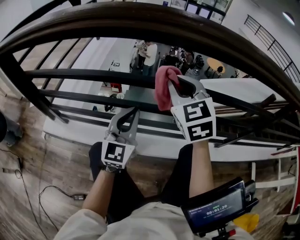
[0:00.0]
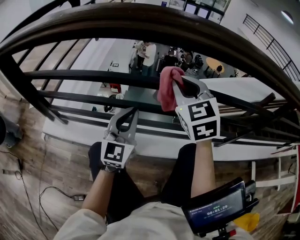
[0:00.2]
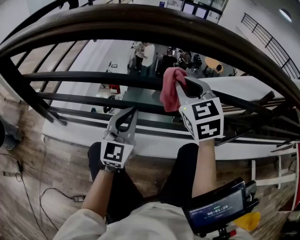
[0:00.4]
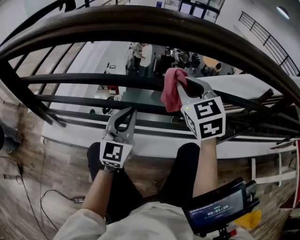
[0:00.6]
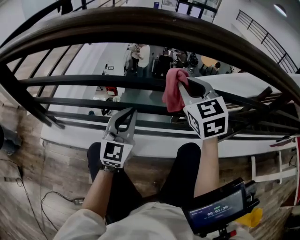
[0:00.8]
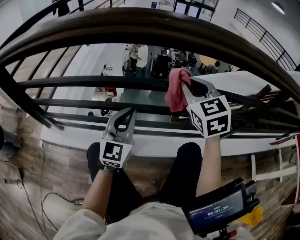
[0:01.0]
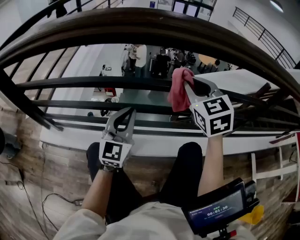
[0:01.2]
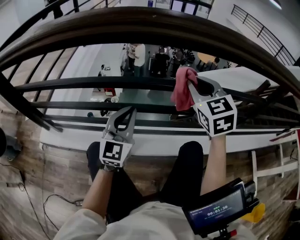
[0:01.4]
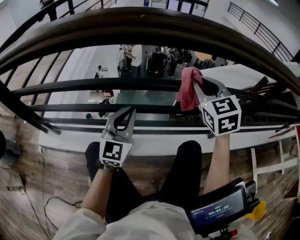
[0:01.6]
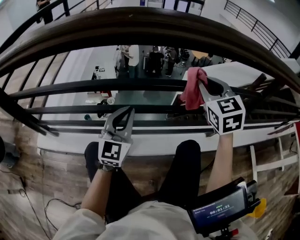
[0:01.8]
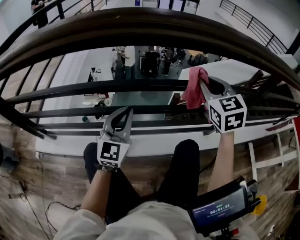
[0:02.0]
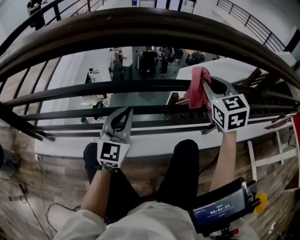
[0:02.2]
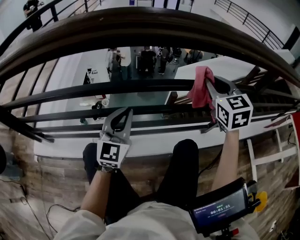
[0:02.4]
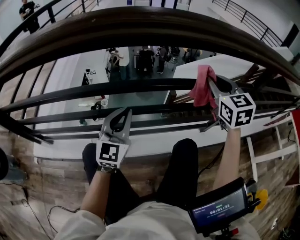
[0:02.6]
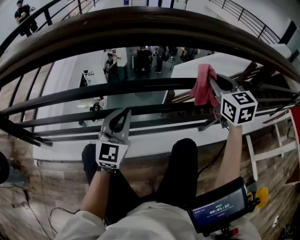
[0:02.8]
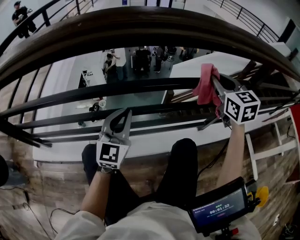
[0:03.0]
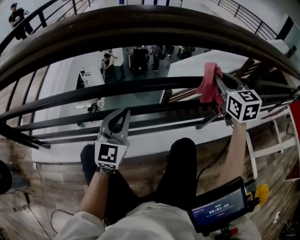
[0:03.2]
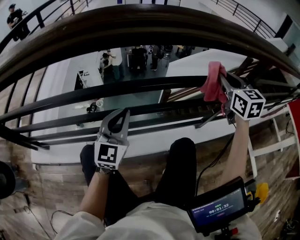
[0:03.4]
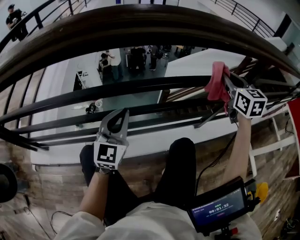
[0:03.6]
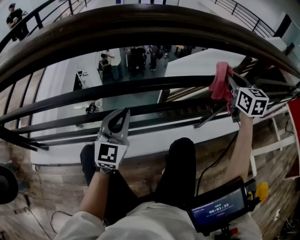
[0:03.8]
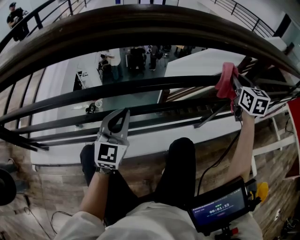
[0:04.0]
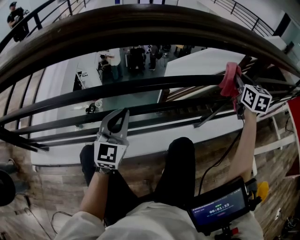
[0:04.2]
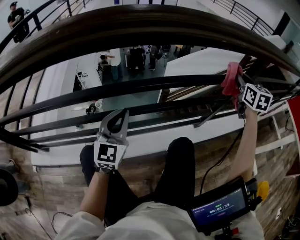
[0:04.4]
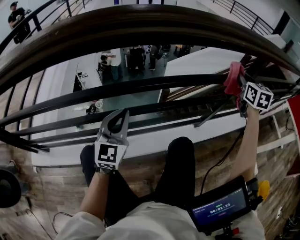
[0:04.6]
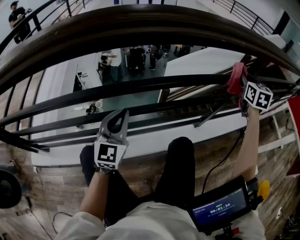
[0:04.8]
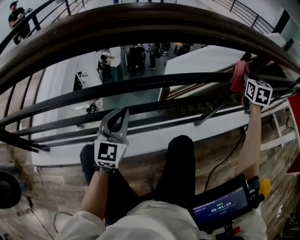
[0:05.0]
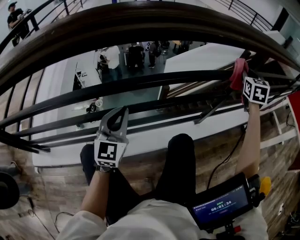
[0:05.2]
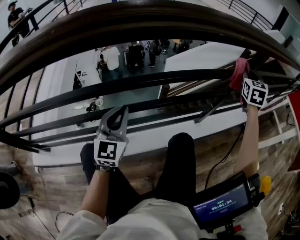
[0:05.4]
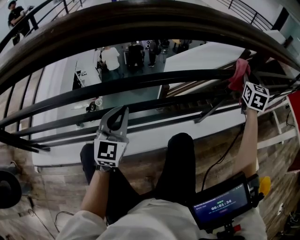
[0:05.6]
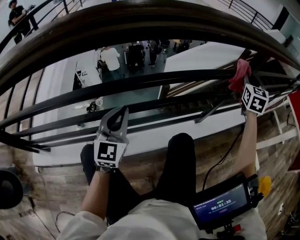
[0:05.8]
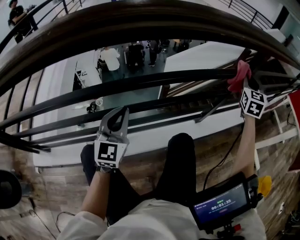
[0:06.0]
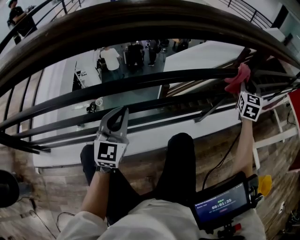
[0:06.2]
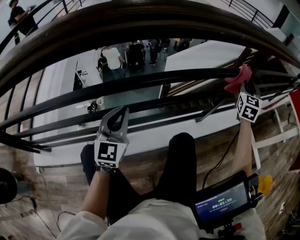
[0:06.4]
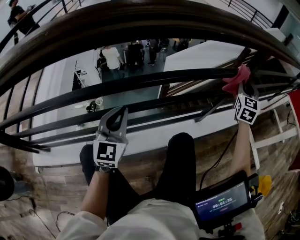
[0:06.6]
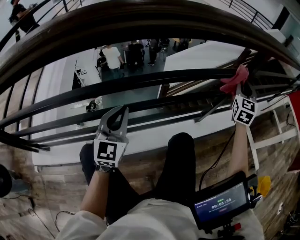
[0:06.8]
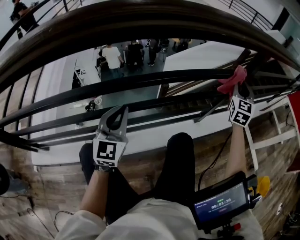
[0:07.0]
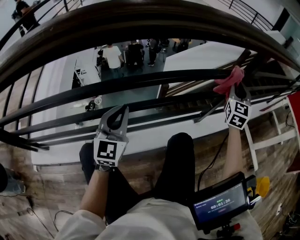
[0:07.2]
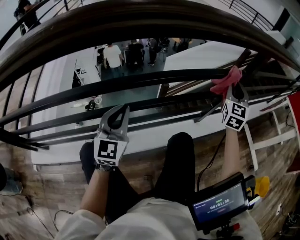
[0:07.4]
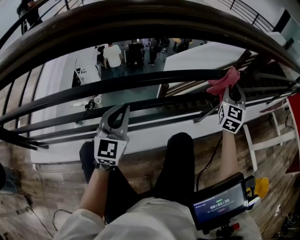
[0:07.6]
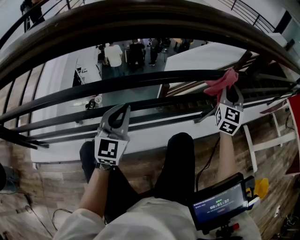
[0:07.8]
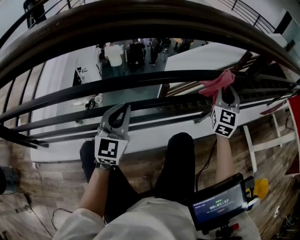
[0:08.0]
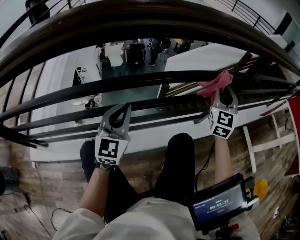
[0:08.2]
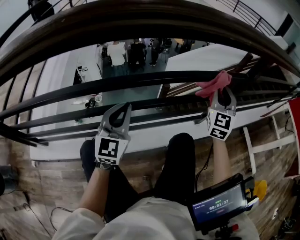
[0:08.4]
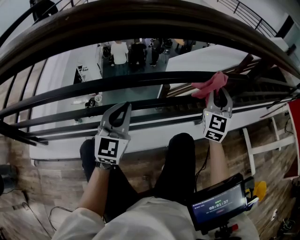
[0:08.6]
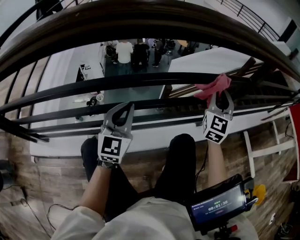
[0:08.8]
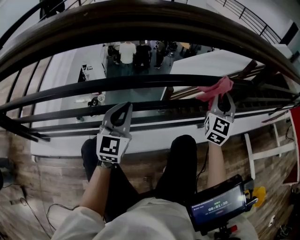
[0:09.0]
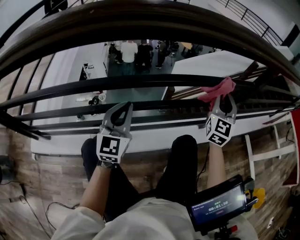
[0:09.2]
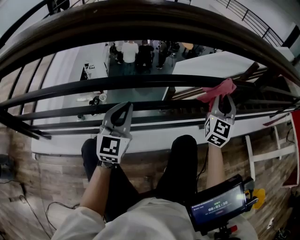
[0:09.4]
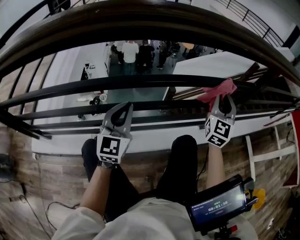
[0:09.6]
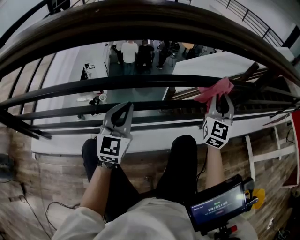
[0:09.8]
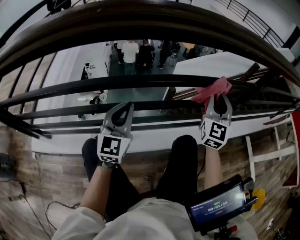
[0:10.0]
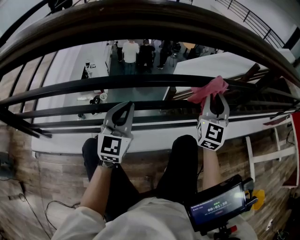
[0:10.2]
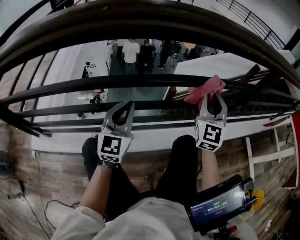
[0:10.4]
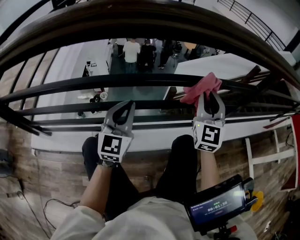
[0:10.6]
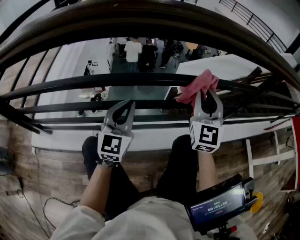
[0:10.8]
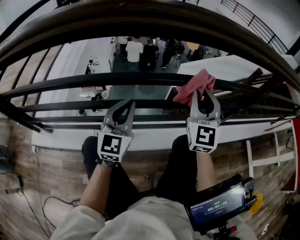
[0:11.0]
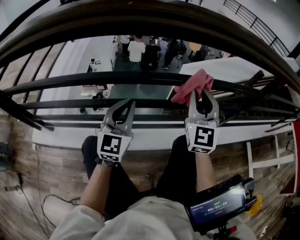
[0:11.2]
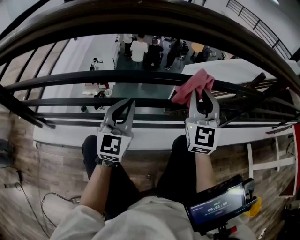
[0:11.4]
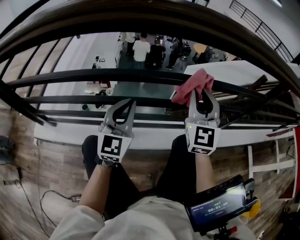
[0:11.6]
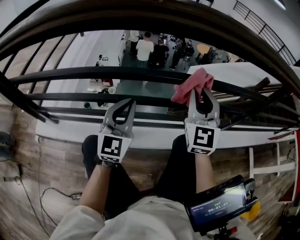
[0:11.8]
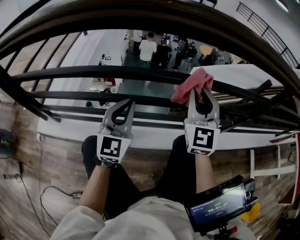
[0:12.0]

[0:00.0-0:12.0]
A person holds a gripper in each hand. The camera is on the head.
0:00.0 to 0:01.6: The left gripper heads to the right, covering approximately 10 cm. The right gripper moves to the right, some 20 cm.
0:01.6 to 0:03.0: The right gripper travels to the right by about 15 cm, while the left gripper changes place by roughly 5 cm.
0:03.0 to 0:04.4: The right gripper travels to the right by some 15 cm, and changes its angle by roughly 20 degrees.
0:04.4 to 0:06.0: The right gripper moves to the right, roughly 5 cm, and rotates about 20 degrees.
0:06.0 to 0:07.6: The right gripper heads to the left and backward, covering roughly 10 cm.
0:07.6 to 0:09.0: The right gripper shifts about 5 cm to the left.
0:09.0 to 0:10.4: The right gripper shifts about 10 cm to the left.
0:10.4 to 0:12.0: The left gripper is displaced to the left by approximately 10 cm. The right gripper travels to the left by roughly 15 cm.

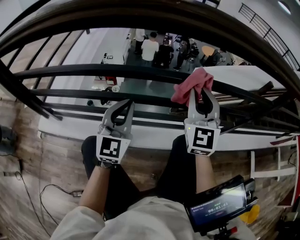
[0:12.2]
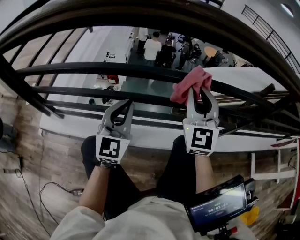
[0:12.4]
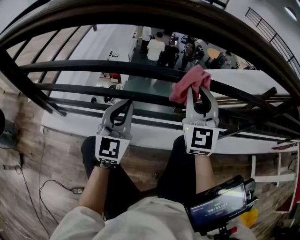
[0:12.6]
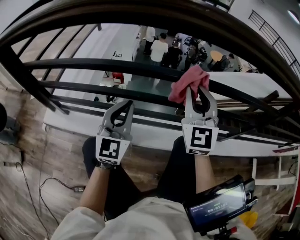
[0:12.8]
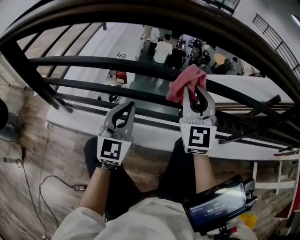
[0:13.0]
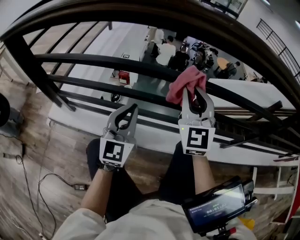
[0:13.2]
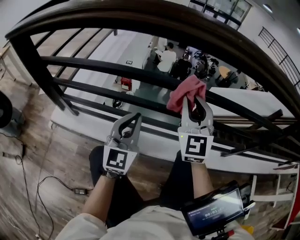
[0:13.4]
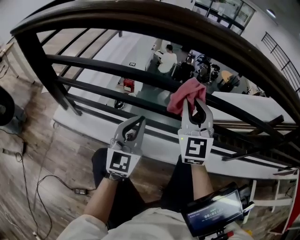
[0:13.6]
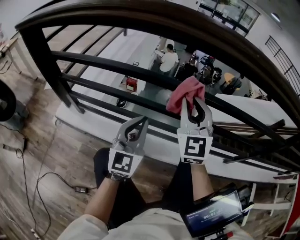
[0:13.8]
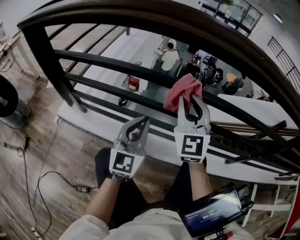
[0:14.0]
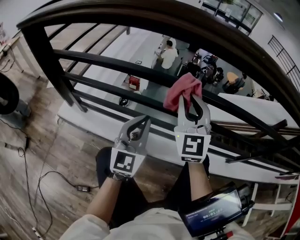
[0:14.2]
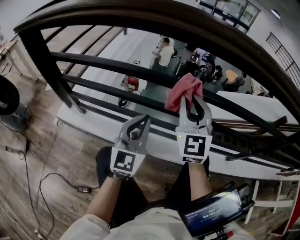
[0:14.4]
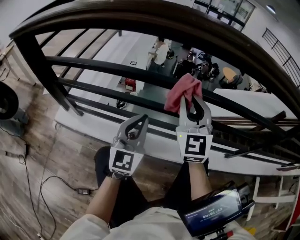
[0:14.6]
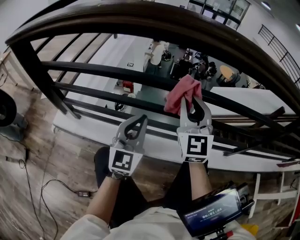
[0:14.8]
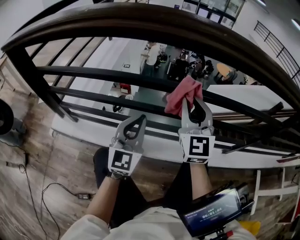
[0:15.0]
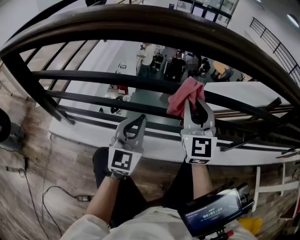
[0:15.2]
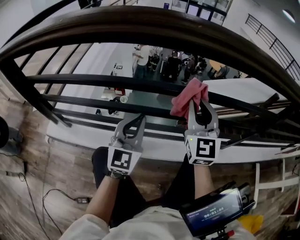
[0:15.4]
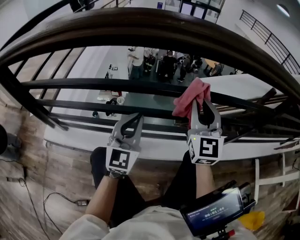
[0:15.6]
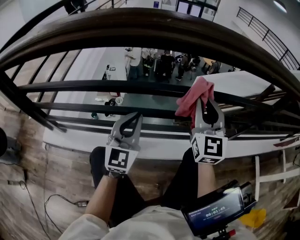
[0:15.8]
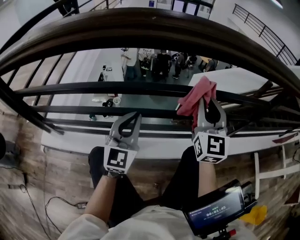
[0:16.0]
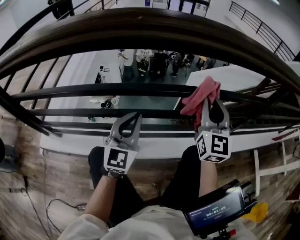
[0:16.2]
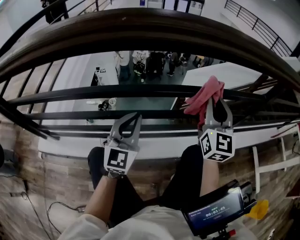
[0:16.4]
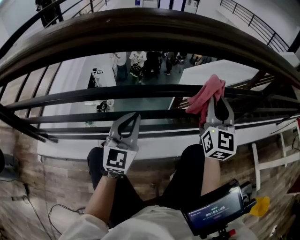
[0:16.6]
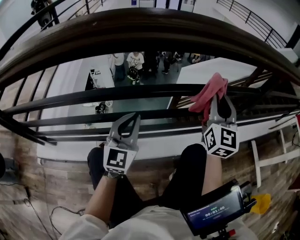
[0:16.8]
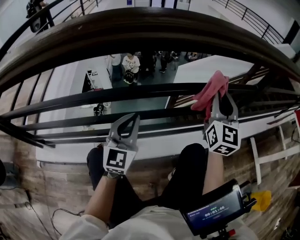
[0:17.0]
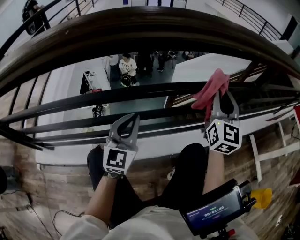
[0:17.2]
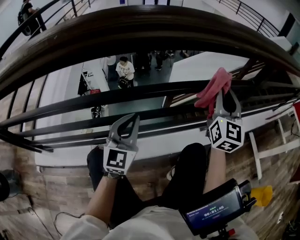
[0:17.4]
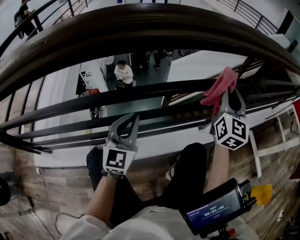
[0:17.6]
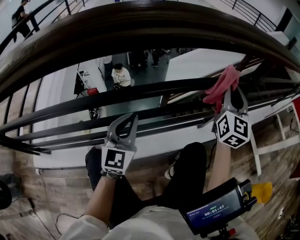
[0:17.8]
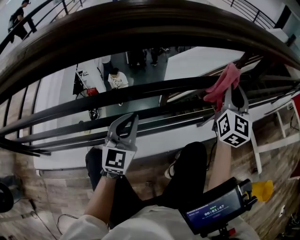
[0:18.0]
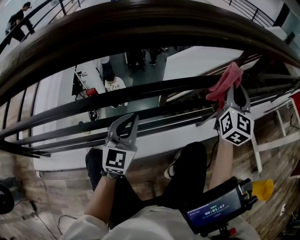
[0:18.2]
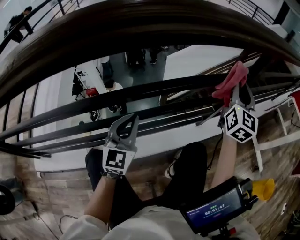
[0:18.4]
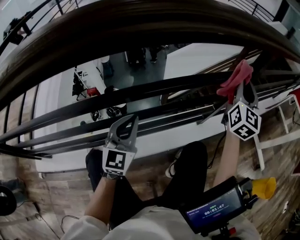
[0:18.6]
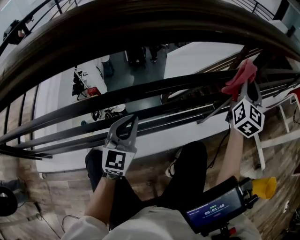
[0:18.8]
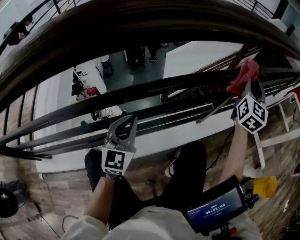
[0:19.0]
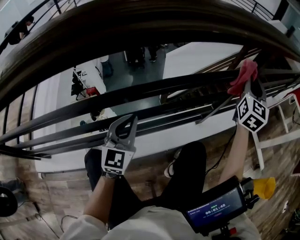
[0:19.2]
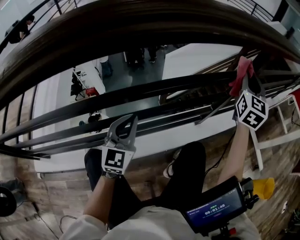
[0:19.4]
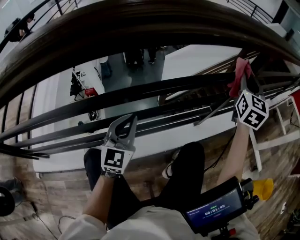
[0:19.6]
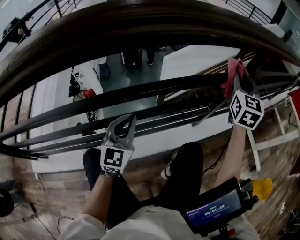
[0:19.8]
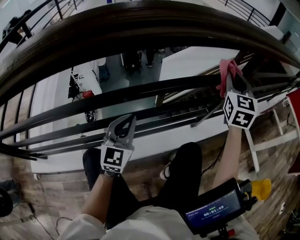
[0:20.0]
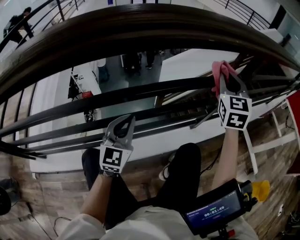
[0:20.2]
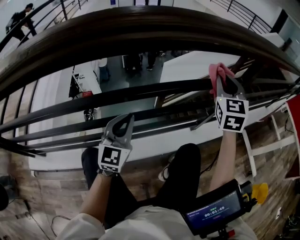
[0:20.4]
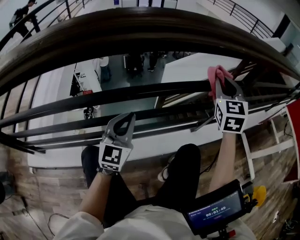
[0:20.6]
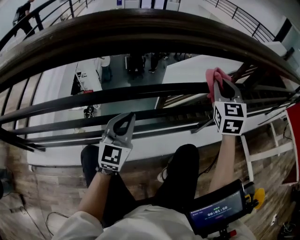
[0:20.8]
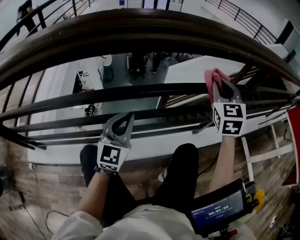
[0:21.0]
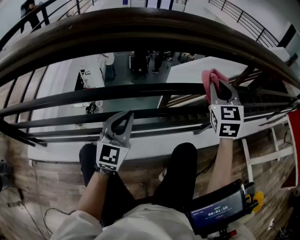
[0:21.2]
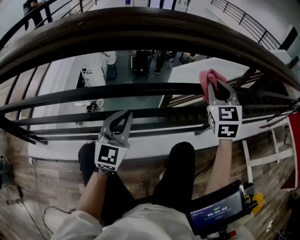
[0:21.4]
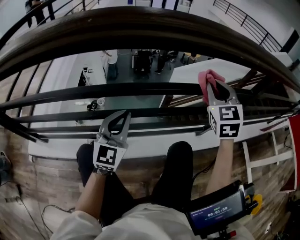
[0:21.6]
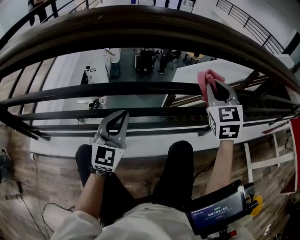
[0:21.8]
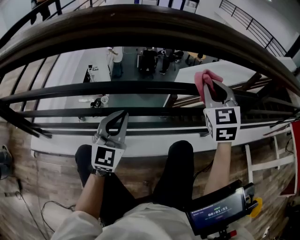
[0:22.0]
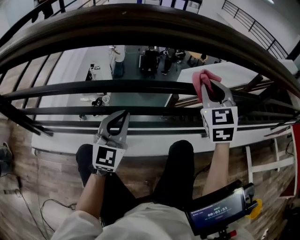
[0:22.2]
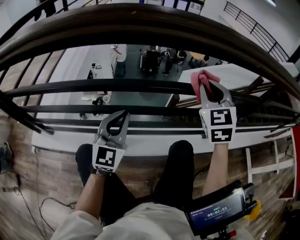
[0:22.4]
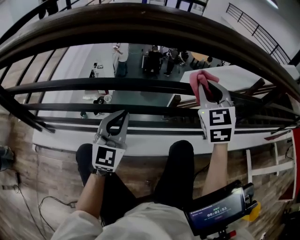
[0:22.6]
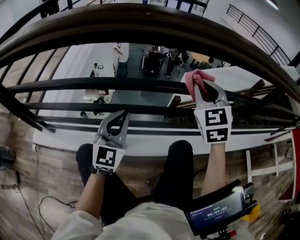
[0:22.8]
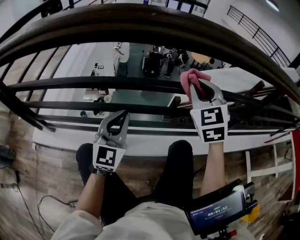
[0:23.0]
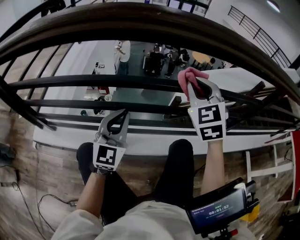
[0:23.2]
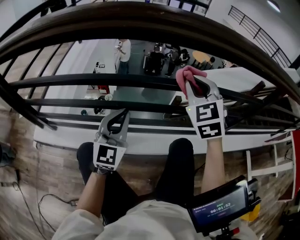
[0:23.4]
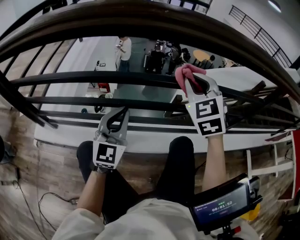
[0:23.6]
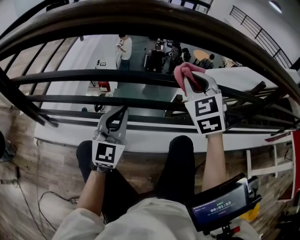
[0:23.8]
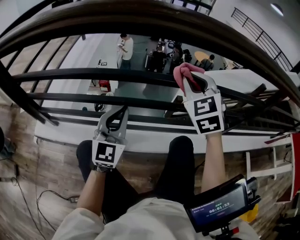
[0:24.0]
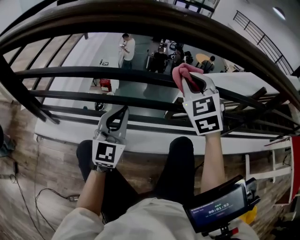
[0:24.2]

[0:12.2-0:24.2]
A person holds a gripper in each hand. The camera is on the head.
0:12.2 to 0:13.8: The right gripper travels to the left by approximately 20 cm. Meanwhile the left gripper goes some 10 cm to the left.
0:13.8 to 0:15.2: The two grippers go about 10 cm to the right.
0:15.2 to 0:16.6: The right gripper moves to the right, some 25 cm, and swivels roughly 20 degrees. The left gripper heads to the right, covering roughly 10 cm.
0:16.6 to 0:18.2: The right gripper travels to the right and forward by roughly 15 cm; the left gripper heads to the right, covering about 5 cm.
0:18.2 to 0:19.8: The right gripper travels to the right and back again, some 10 cm each way.
0:19.8 to 0:21.2: The left gripper shifts by about 5 cm, while the right gripper shifts some 15 cm to the left, and rotates approximately 20 degrees.
0:21.2 to 0:22.6: The left gripper is displaced to the left by some 10 cm. Meanwhile the right gripper travels to the left by approximately 15 cm.
0:22.6 to 0:24.2: The right gripper heads to the left, covering about 15 cm. The left gripper goes about 5 cm to the left.
